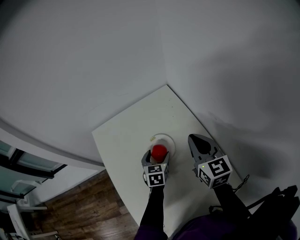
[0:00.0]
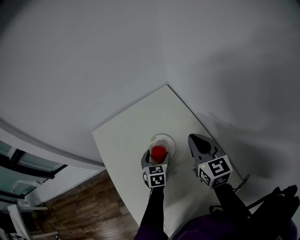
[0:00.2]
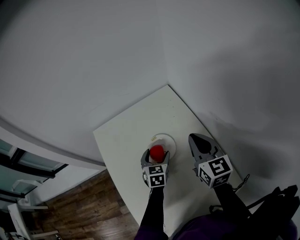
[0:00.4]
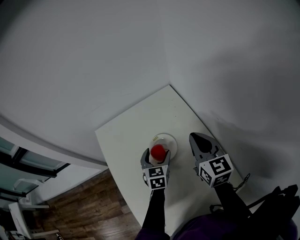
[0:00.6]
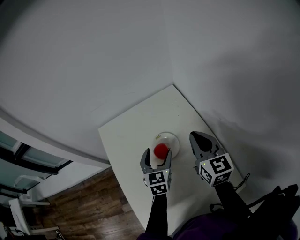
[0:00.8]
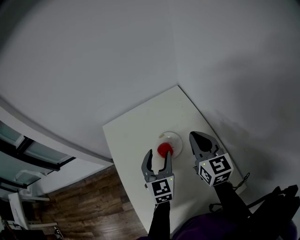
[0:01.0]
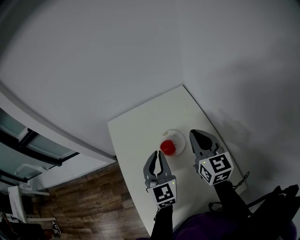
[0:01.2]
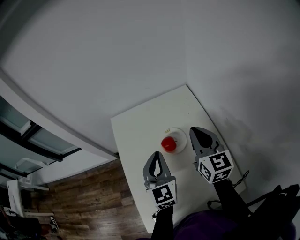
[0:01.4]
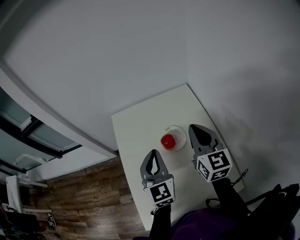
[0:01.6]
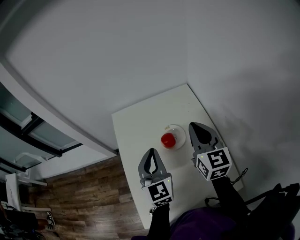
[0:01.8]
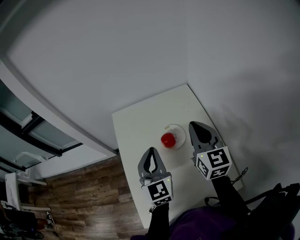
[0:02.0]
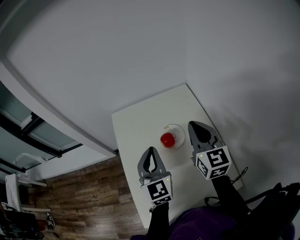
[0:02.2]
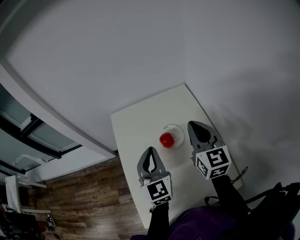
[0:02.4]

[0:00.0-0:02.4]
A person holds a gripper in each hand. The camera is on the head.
0:00.0 to 0:01.2: The left gripper goes roughly 20 cm upward, turns by approximately 40 degrees, and closes up. Meanwhile the right gripper moves some 5 cm.
0:01.2 to 0:02.4: The right gripper changes place by some 5 cm, while the left gripper shifts by some 5 cm.

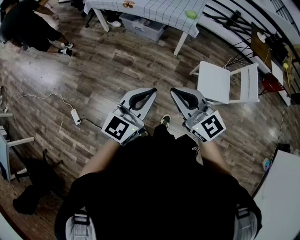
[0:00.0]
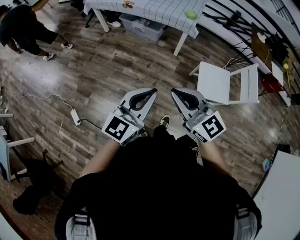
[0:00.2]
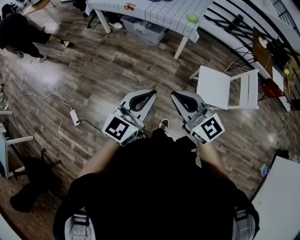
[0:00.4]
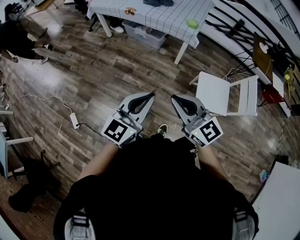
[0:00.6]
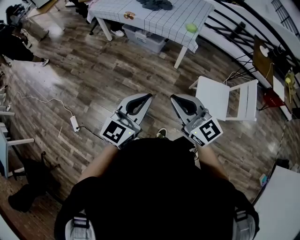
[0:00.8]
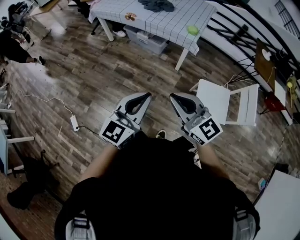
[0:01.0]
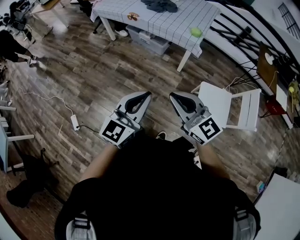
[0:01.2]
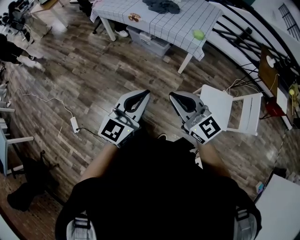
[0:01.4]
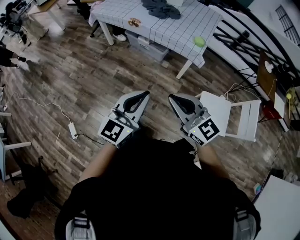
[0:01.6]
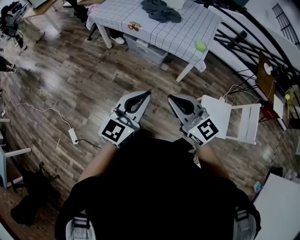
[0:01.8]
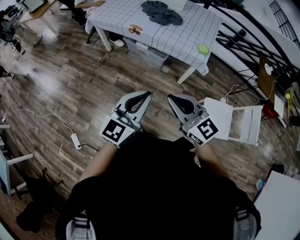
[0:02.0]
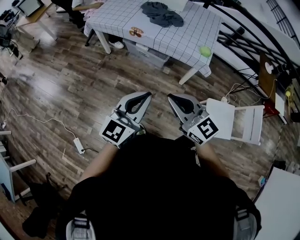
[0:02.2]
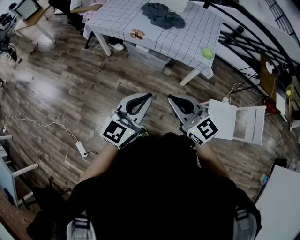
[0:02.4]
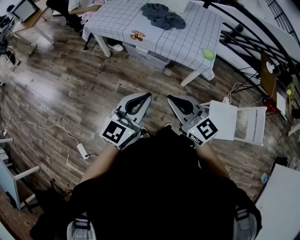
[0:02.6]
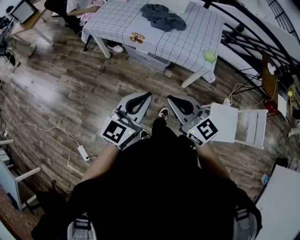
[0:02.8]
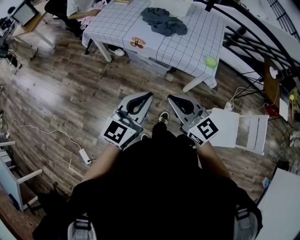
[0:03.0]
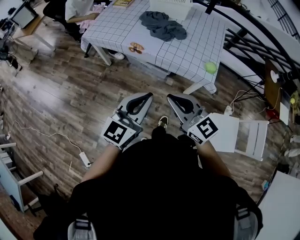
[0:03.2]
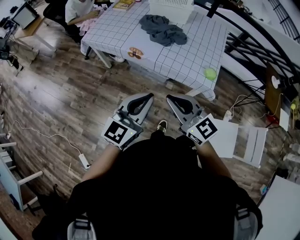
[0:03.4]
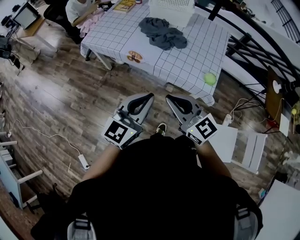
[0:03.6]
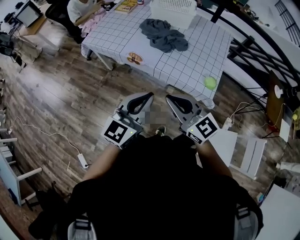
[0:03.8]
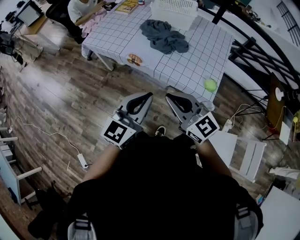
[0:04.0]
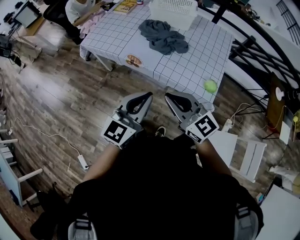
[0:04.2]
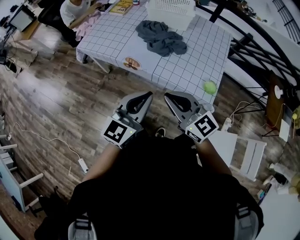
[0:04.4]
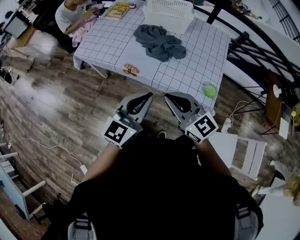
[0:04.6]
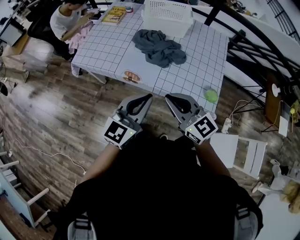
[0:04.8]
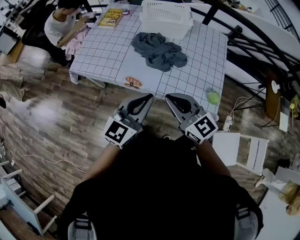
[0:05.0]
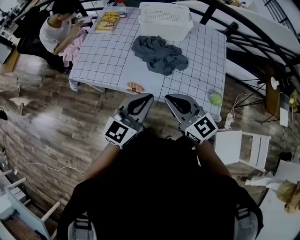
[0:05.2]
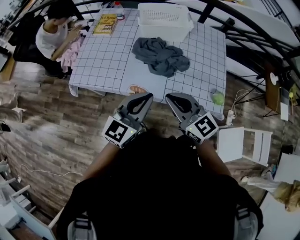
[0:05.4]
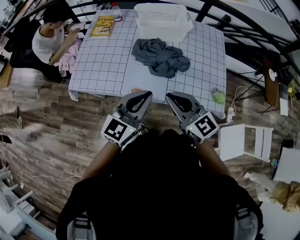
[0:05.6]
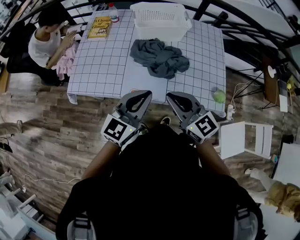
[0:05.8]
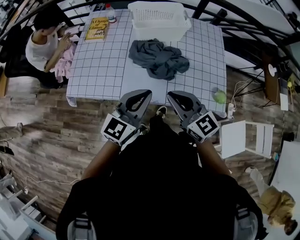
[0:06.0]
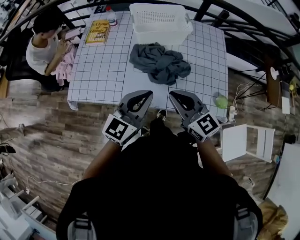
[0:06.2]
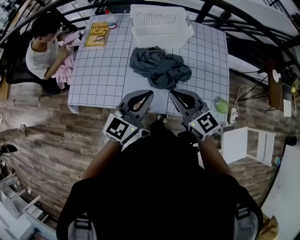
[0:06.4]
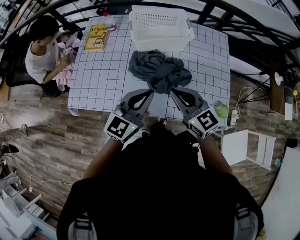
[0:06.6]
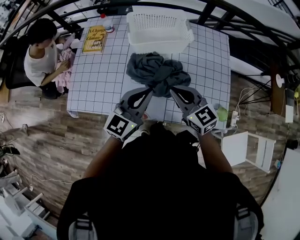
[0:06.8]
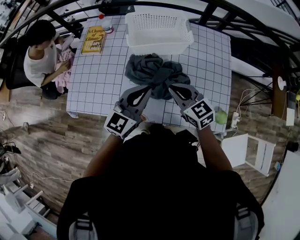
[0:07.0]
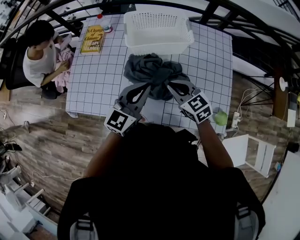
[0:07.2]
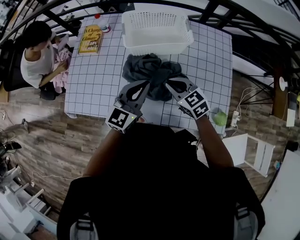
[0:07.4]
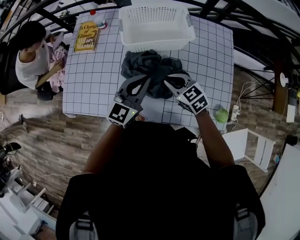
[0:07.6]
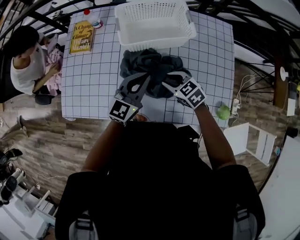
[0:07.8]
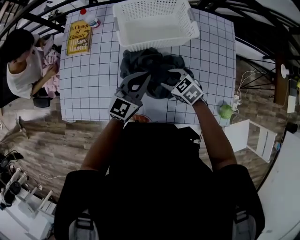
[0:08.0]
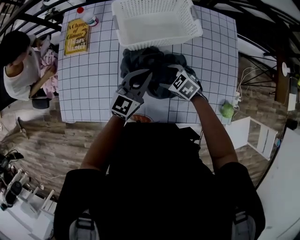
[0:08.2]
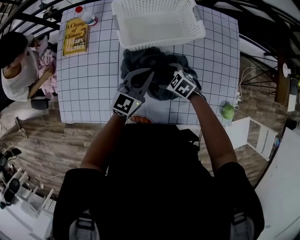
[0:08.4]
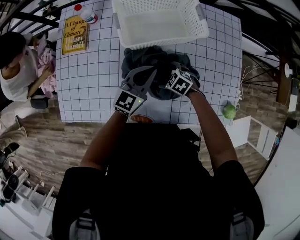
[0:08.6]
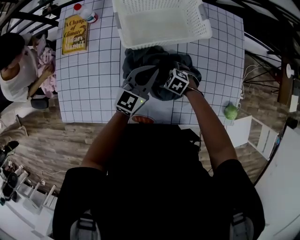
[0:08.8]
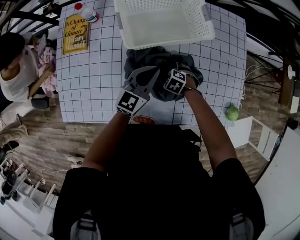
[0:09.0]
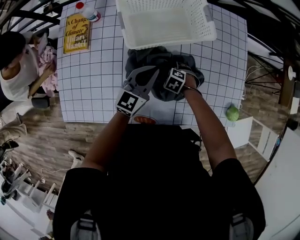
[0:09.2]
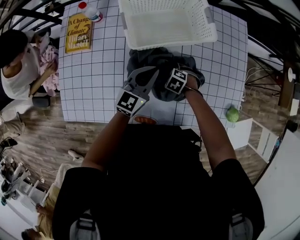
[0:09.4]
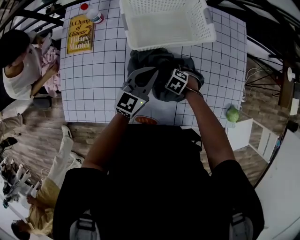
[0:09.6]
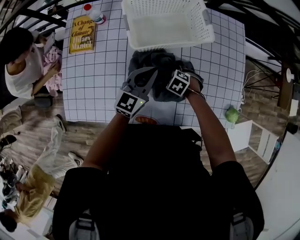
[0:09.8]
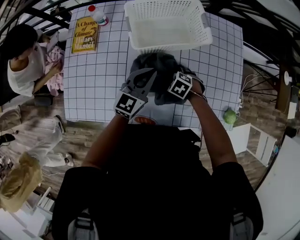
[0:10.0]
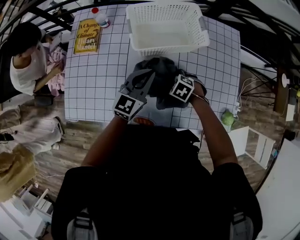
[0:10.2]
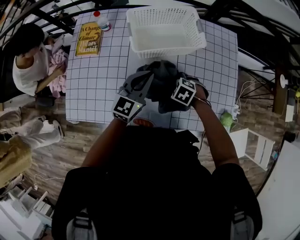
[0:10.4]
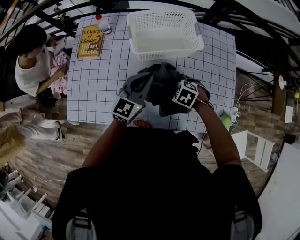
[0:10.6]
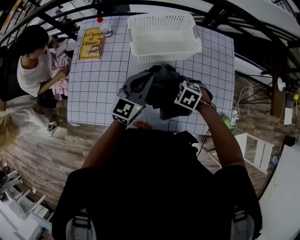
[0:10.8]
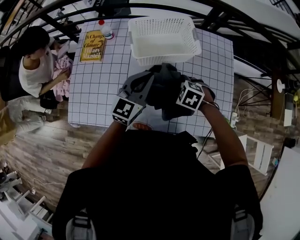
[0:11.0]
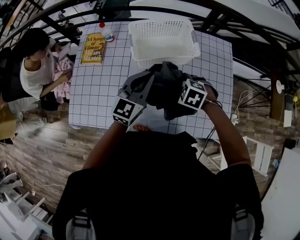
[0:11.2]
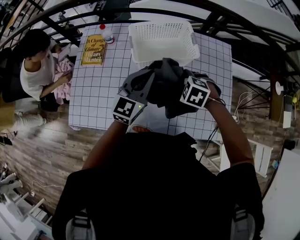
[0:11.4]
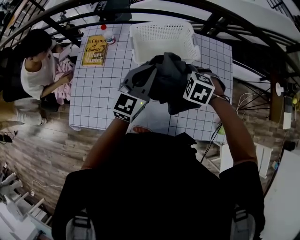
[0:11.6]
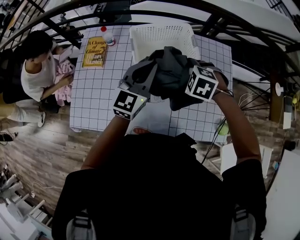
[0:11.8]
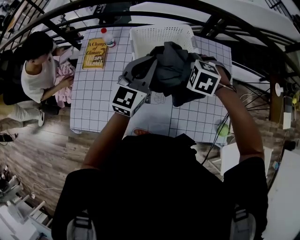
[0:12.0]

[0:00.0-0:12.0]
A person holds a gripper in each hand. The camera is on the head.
0:00.0 to 0:01.6: The grippers both shift forward by about 20 cm.
0:01.6 to 0:03.0: The left gripper moves forward, about 25 cm. The right gripper travels forward and to the left by roughly 30 cm.
0:03.0 to 0:04.4: Both grippers move forward, roughly 20 cm.
0:04.4 to 0:06.0: The two grippers go about 30 cm forward and to the left. The right gripper changes its angle by roughly 20 degrees, while the left gripper turns by approximately 20 degrees.
0:06.0 to 0:07.6: The right gripper travels forward and downward by roughly 30 cm, and turns by roughly 30 degrees; the left gripper travels forward by about 25 cm.
0:07.6 to 0:09.0: The right gripper is displaced downward by roughly 25 cm, tips its fingers downward by some 40 degrees, and opens its fingers. The left gripper goes some 15 cm downward and forward.
0:09.0 to 0:10.4: The left gripper goes some 10 cm upward, while the right gripper is displaced upward by approximately 15 cm.
0:10.4 to 0:12.0: The grippers both shift upward by some 20 cm. The right gripper rotates approximately 20 degrees.

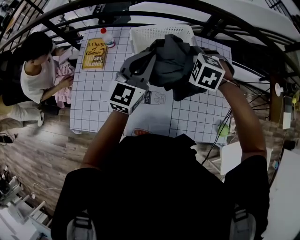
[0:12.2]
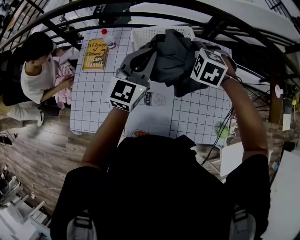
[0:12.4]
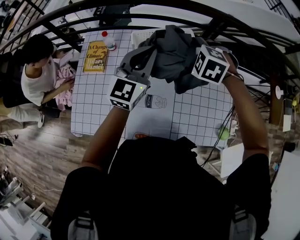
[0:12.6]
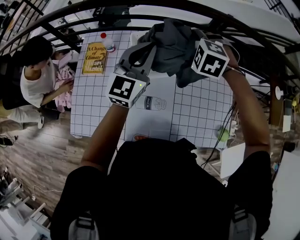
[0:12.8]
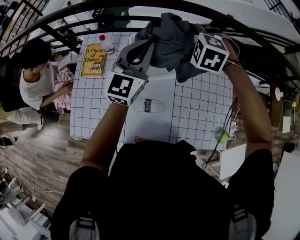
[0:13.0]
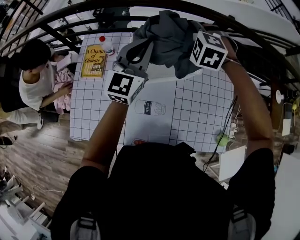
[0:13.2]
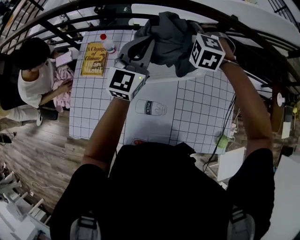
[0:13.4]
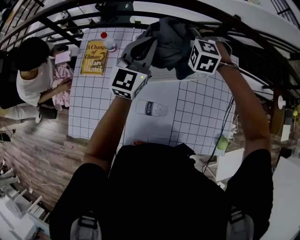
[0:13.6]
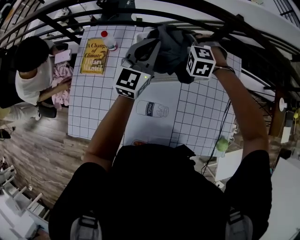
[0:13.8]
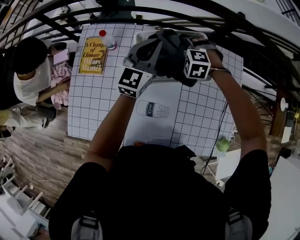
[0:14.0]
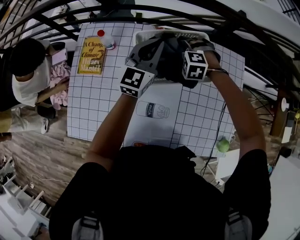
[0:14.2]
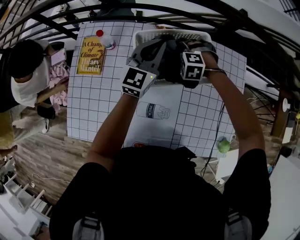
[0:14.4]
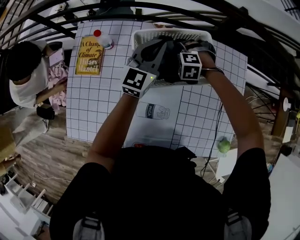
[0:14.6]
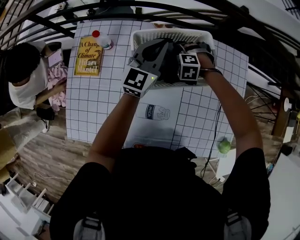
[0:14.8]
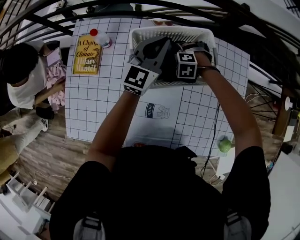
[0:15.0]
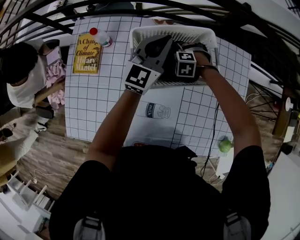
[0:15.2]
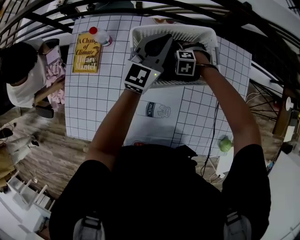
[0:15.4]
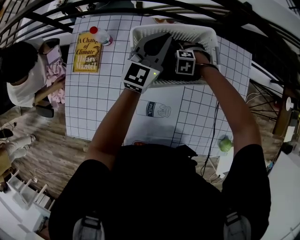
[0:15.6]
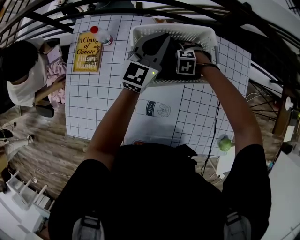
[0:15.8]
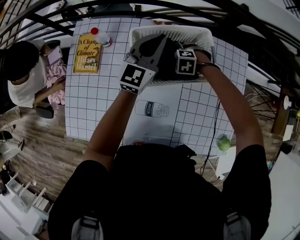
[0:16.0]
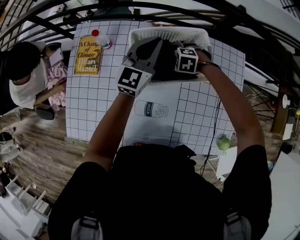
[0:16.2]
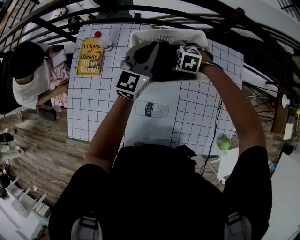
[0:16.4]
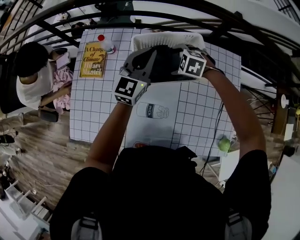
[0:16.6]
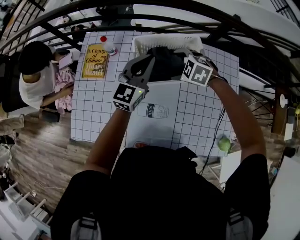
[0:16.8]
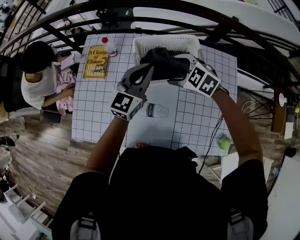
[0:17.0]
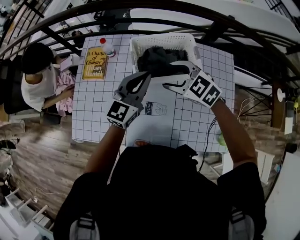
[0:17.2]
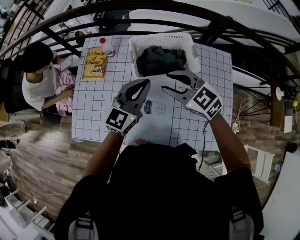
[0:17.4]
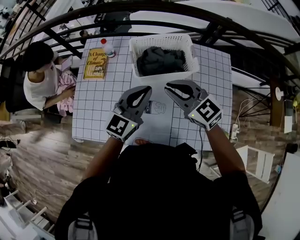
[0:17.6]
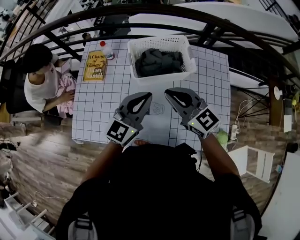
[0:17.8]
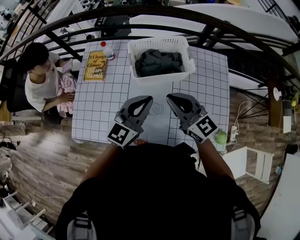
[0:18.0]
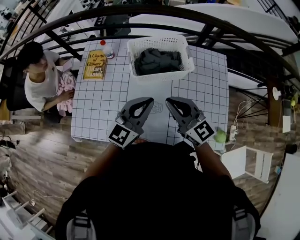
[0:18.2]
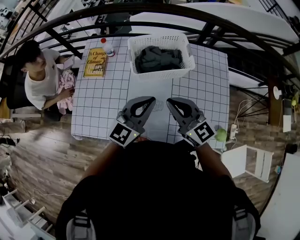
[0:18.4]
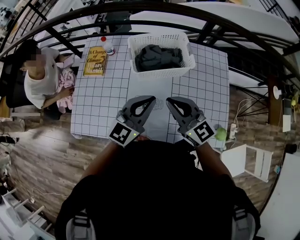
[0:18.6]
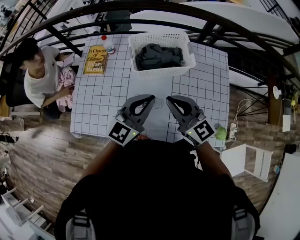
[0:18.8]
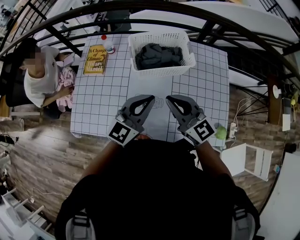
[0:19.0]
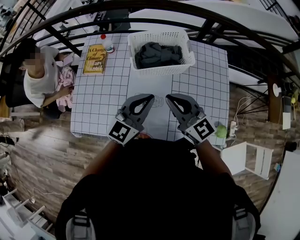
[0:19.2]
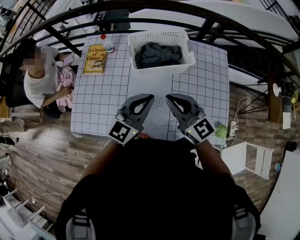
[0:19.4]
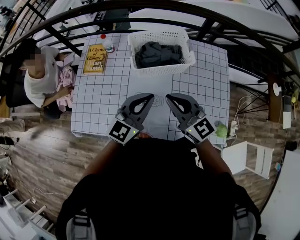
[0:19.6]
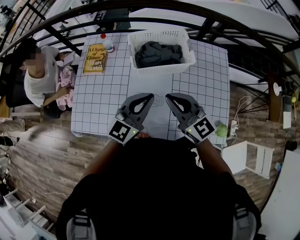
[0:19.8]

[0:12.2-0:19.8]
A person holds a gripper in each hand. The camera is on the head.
0:12.2 to 0:13.8: The left gripper shifts roughly 15 cm forward; the right gripper goes about 20 cm forward and downward.
0:13.8 to 0:15.2: The left gripper travels downward by some 10 cm. The right gripper moves downward, about 20 cm.
0:15.2 to 0:16.8: The right gripper is displaced upward by about 20 cm. Meanwhile the left gripper shifts by about 15 cm.
0:16.8 to 0:18.2: The left gripper travels backward by roughly 25 cm. The right gripper heads backward and upward, covering some 30 cm, angles its fingers upward, by about 60 degrees, and closes its fingers.
0:18.2 to 0:19.8: There are only small adjustments of the grippers.

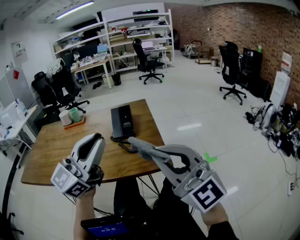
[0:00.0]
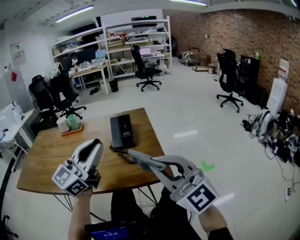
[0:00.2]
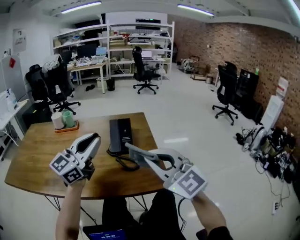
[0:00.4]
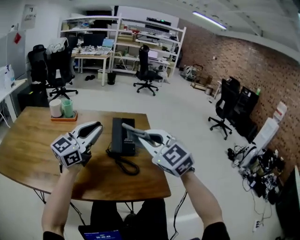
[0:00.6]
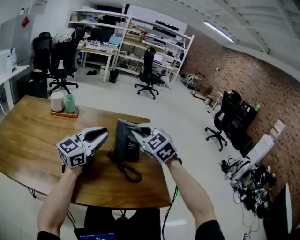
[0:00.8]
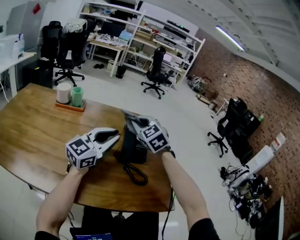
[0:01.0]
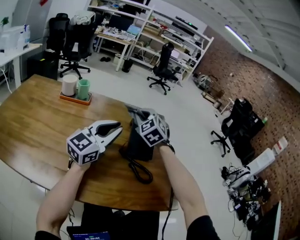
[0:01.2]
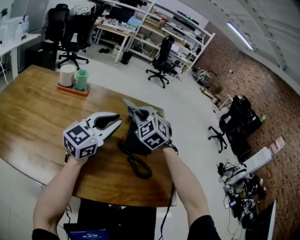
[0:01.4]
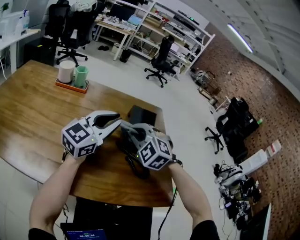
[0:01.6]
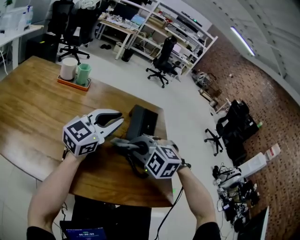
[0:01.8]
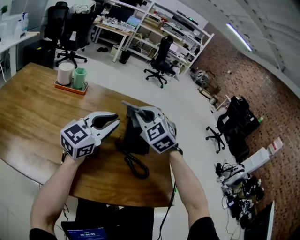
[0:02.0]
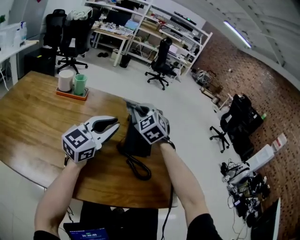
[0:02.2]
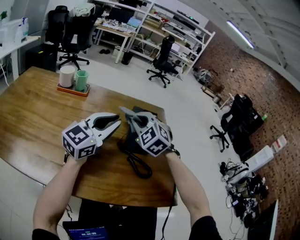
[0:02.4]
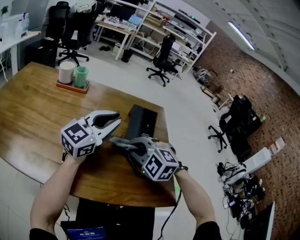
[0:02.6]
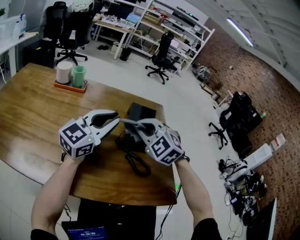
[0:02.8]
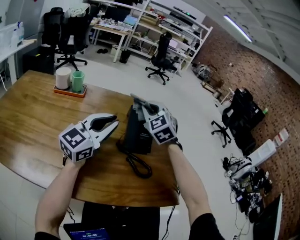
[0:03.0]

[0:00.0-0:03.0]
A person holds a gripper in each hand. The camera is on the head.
0:00.0 to 0:01.6: Both grippers travel together forward, downward and to the left, approximately 35 cm. The right gripper tips its fingers downward by some 50 degrees.
0:01.6 to 0:03.0: The right gripper goes forward and backward, some 20 cm each way, reversing 3 times, and rotates about 30 degrees.
